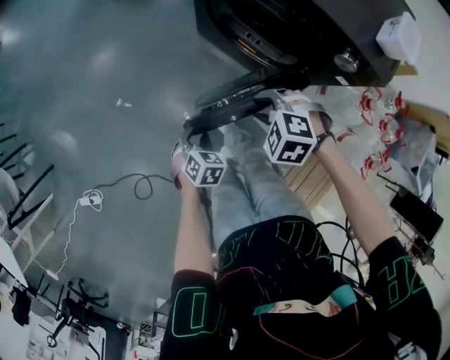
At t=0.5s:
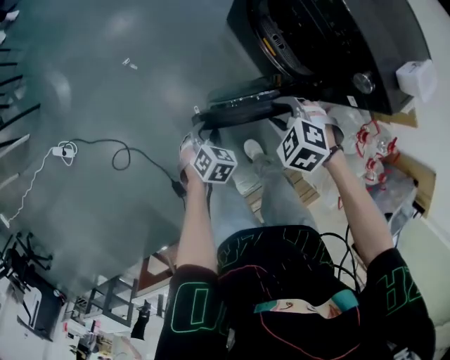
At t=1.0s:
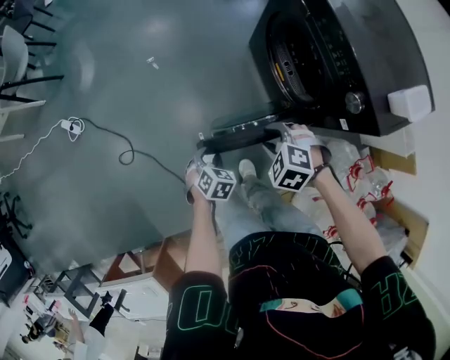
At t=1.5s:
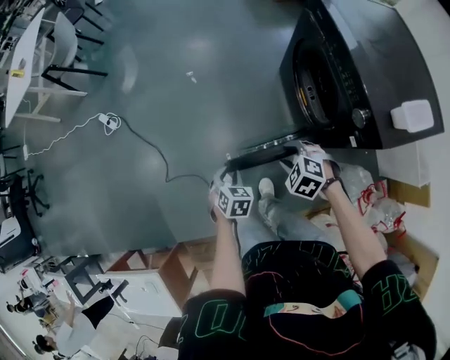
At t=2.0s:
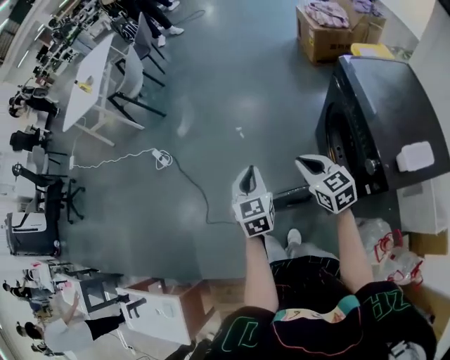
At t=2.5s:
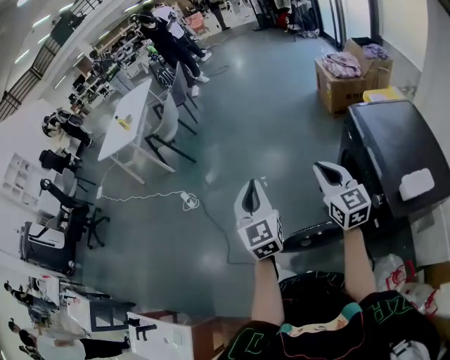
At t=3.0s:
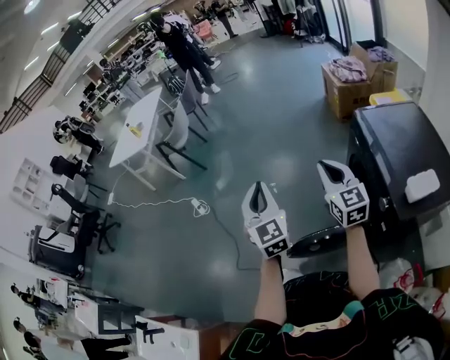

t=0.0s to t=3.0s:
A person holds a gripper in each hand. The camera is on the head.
t=0.0s to t=1.5s: The left gripper shifts by approximately 20 cm, and twists roughly 40 degrees counterclockwise, seen from behind; the right gripper changes place by some 15 cm, and swivels some 30 degrees.
t=1.5s to t=3.0s: The left gripper goes roughly 50 cm upward, points its fingers about 60 degrees further upward, and closes up. The right gripper heads upward and forward, covering approximately 40 cm, angles its fingers upward, by approximately 60 degrees, and closes.

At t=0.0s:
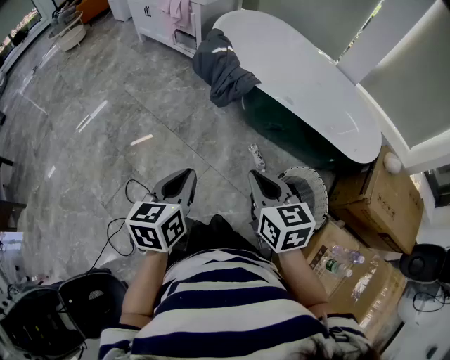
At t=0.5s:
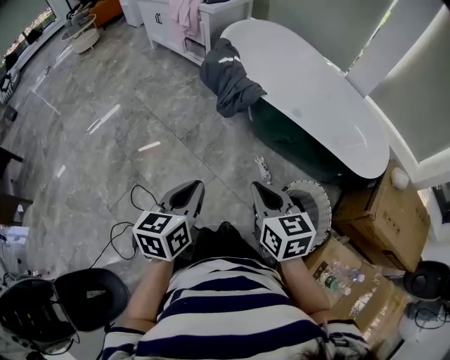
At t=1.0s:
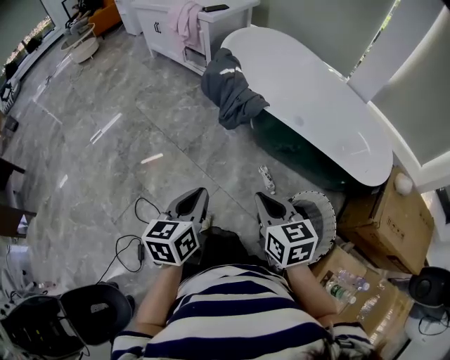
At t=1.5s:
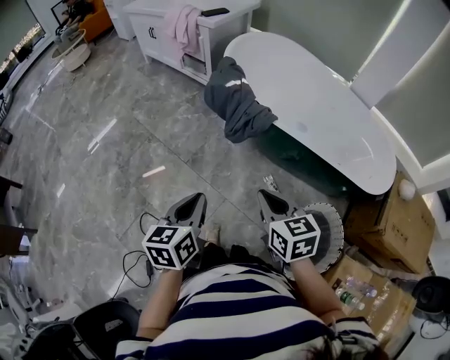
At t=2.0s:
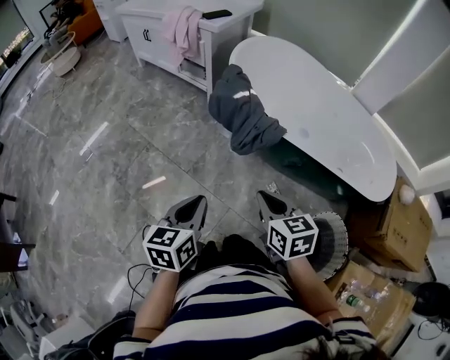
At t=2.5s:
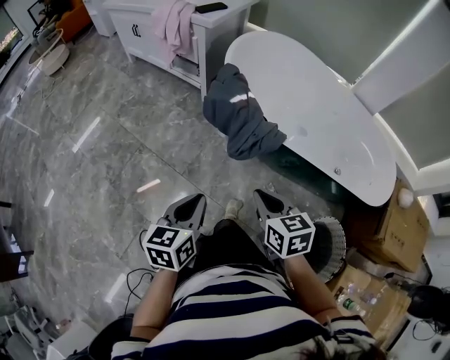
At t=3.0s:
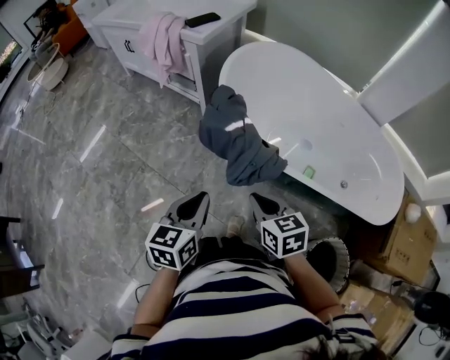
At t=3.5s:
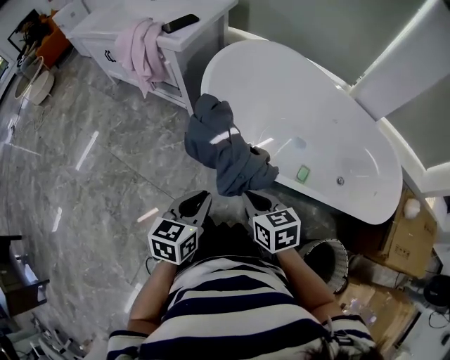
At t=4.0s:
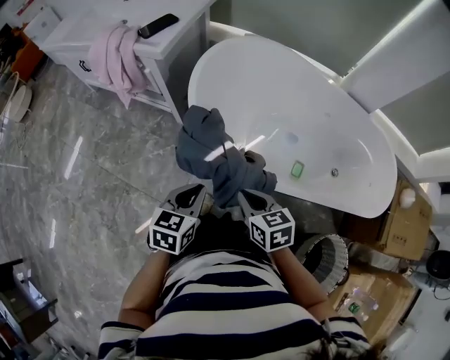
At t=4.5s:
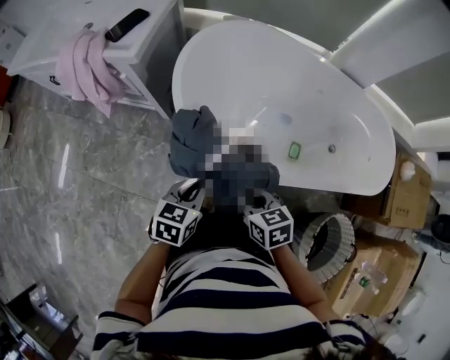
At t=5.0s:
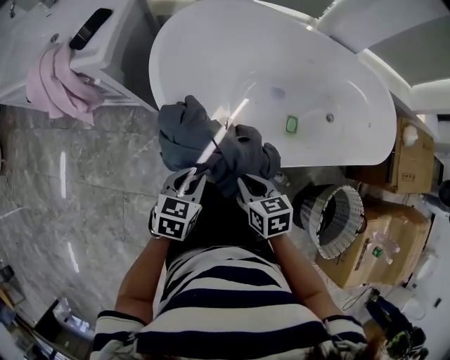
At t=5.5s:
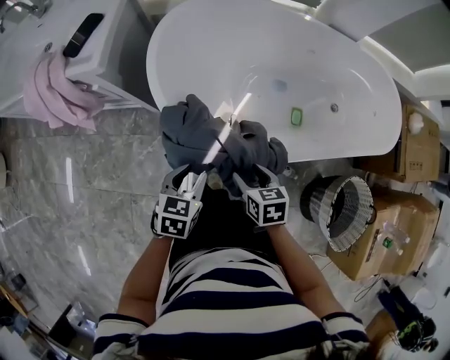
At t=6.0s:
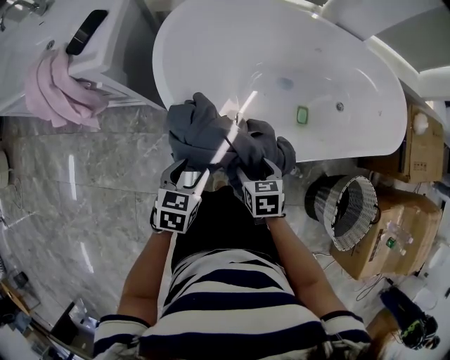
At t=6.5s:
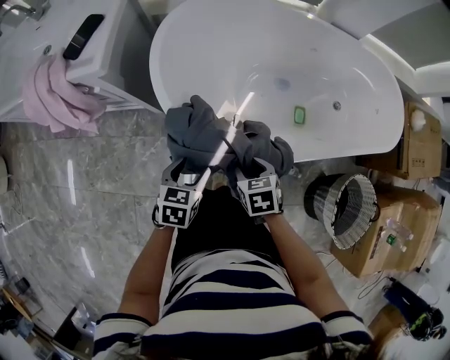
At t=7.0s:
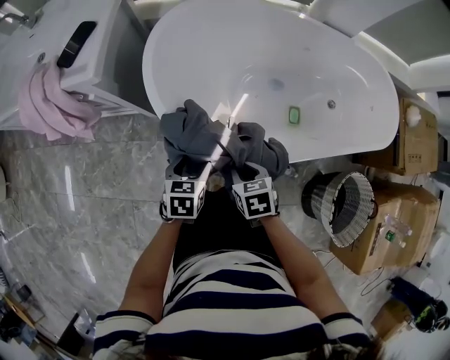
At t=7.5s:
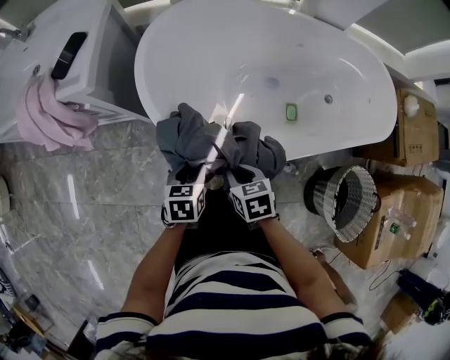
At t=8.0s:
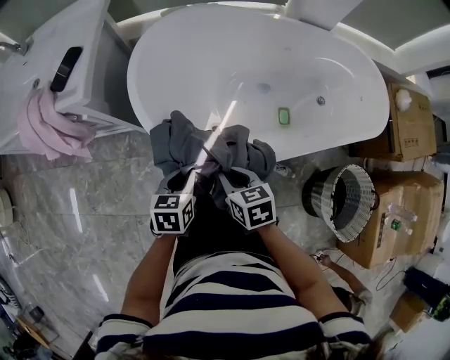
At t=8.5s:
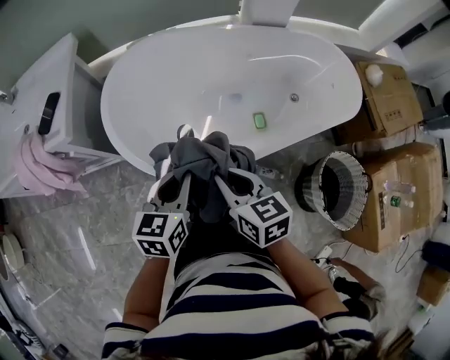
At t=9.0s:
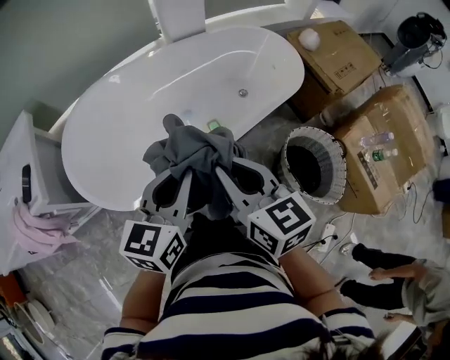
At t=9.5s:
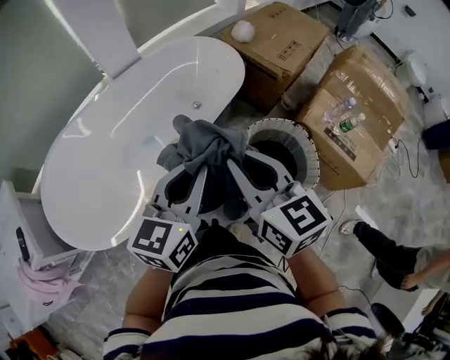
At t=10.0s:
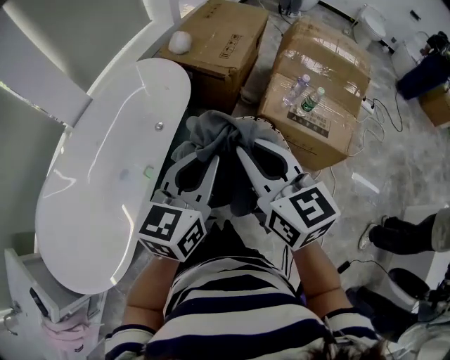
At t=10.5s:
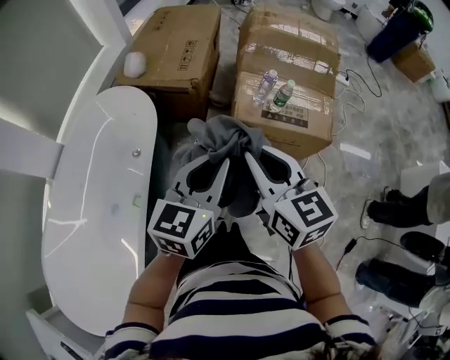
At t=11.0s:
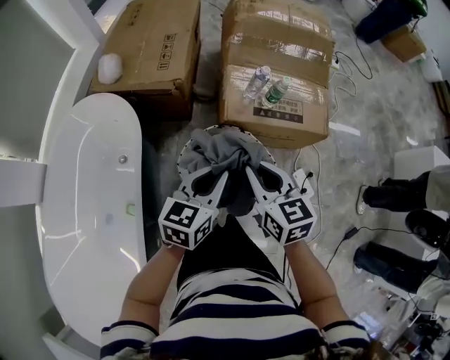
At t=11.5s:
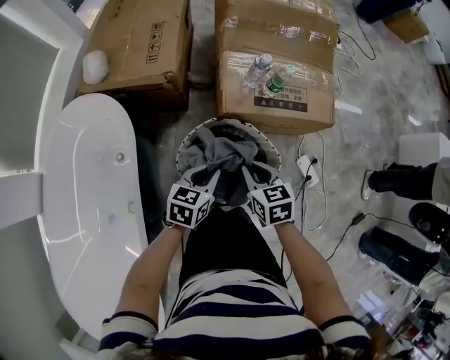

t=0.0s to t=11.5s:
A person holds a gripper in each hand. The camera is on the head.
t=0.0s to t=2.0s: Both grippers travel together forward and to the left, roughly 20 cm.
t=2.0s to t=4.0s: Both grippers travel together forward, some 30 cm. The left gripper swivels roughly 30 degrees.
t=4.0s to t=6.0s: Both grippers move downward, about 10 cm. The left gripper turns by about 20 degrees, and opens its fingers. Meanwhile the right gripper rotates some 30 degrees, and opens up.
t=6.0s to t=7.5s: The right gripper closes its fingers.
t=7.5s to t=9.5s: Both grippers are carried roughly 40 cm. The right gripper points its fingers roughly 40 degrees further upward. The left gripper tilts its fingers some 40 degrees upward.
t=9.5s to t=11.5s: The left gripper shifts by about 40 cm, and changes its angle by approximately 60 degrees, while the right gripper ends up approximately 40 cm from where it was, and angles its fingers downward, by roughly 30 degrees.

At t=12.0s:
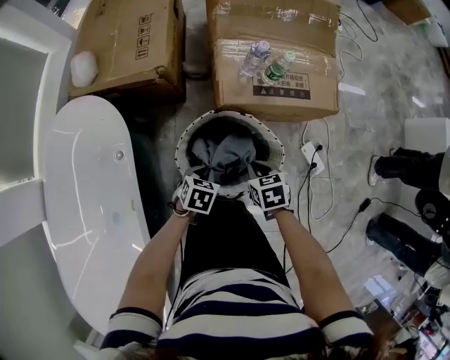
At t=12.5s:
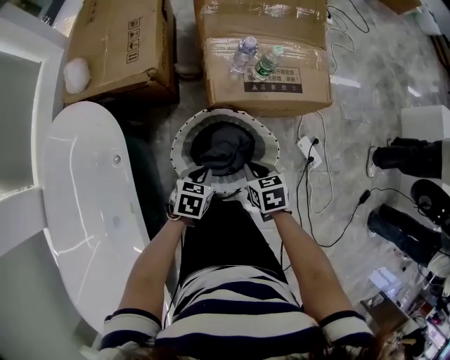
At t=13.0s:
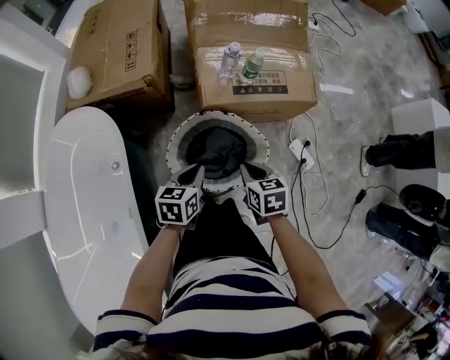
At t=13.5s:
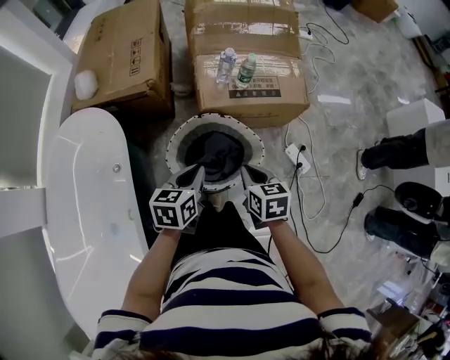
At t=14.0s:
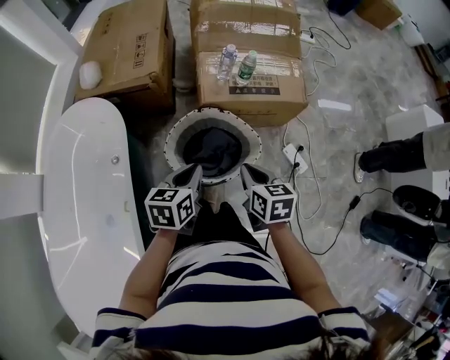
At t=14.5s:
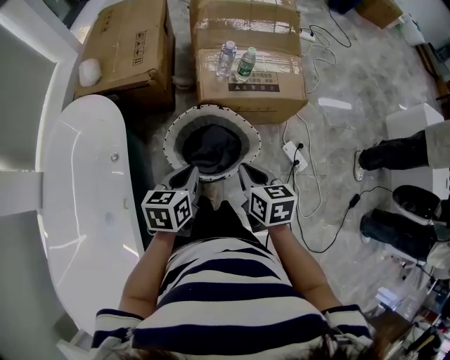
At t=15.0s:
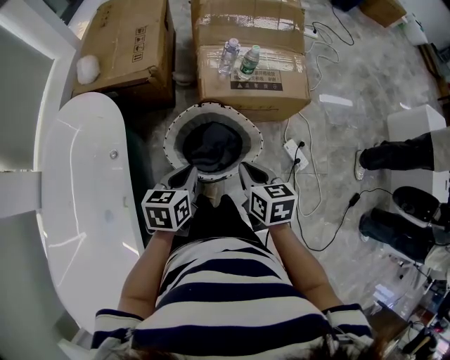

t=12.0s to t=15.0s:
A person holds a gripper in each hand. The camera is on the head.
t=12.0s to t=13.5s: The right gripper is displaced upward and backward by roughly 15 cm, and turns by roughly 20 degrees. The left gripper goes roughly 15 cm upward, and changes its angle by roughly 30 degrees.
t=13.5s to t=15.0s: There are only small adjustments of the grippers.

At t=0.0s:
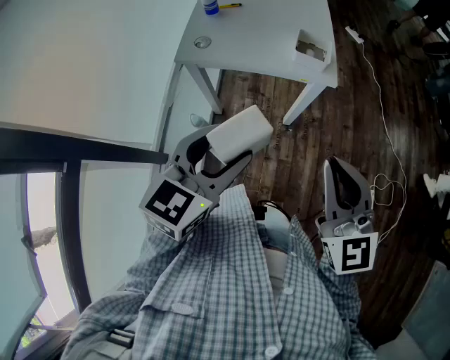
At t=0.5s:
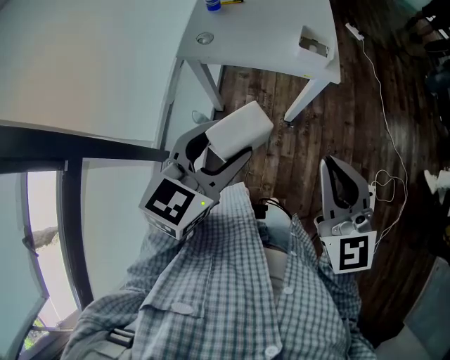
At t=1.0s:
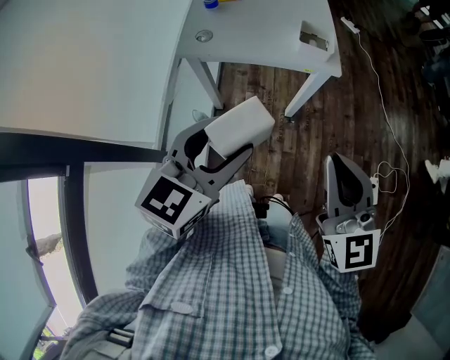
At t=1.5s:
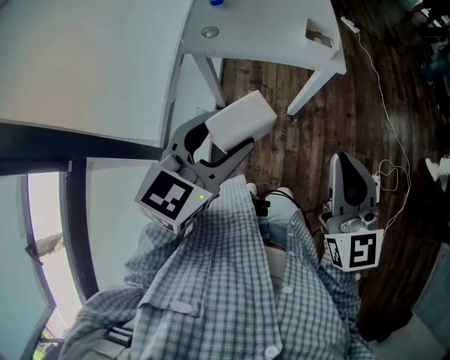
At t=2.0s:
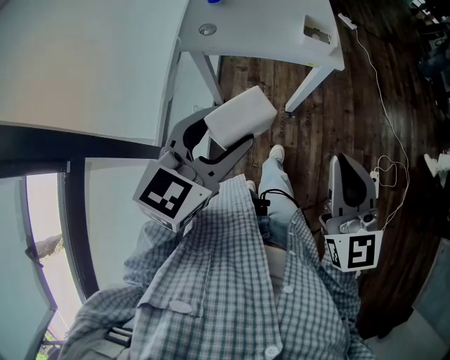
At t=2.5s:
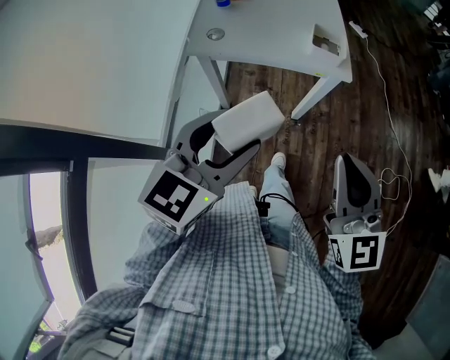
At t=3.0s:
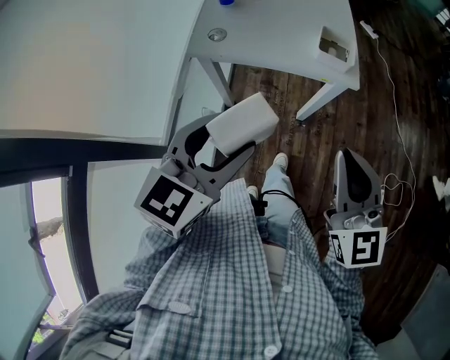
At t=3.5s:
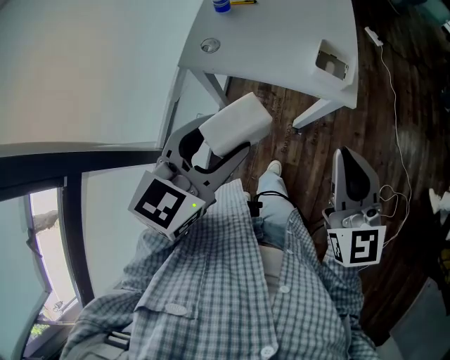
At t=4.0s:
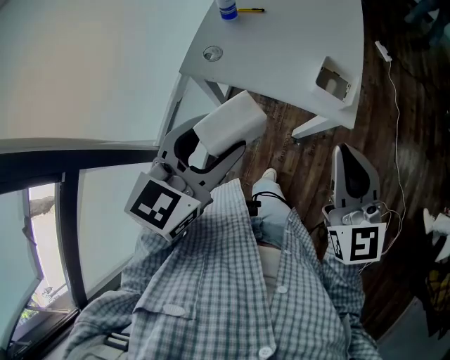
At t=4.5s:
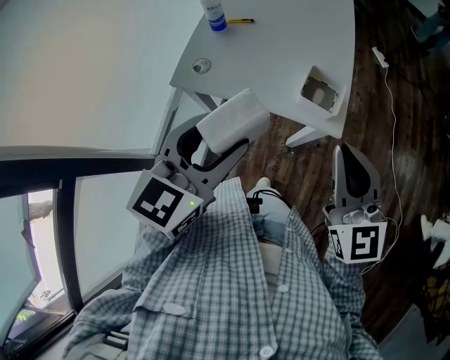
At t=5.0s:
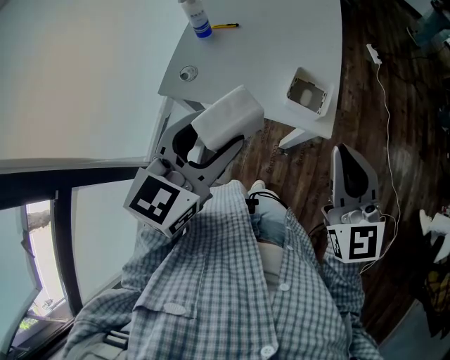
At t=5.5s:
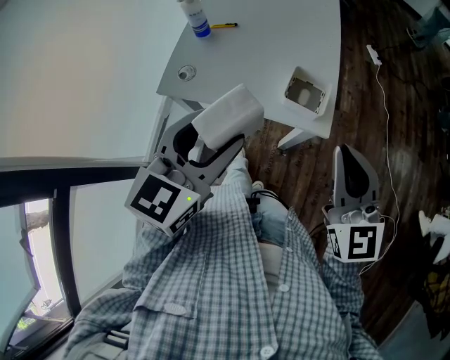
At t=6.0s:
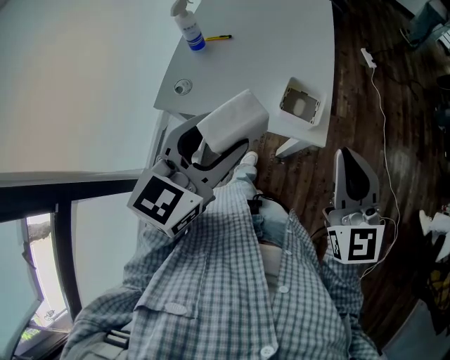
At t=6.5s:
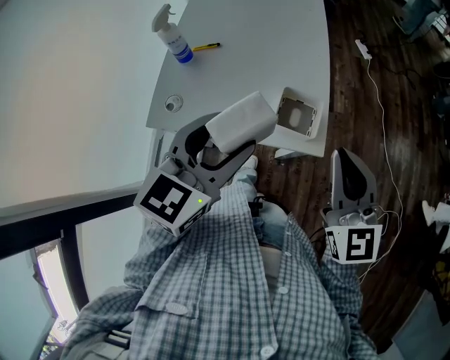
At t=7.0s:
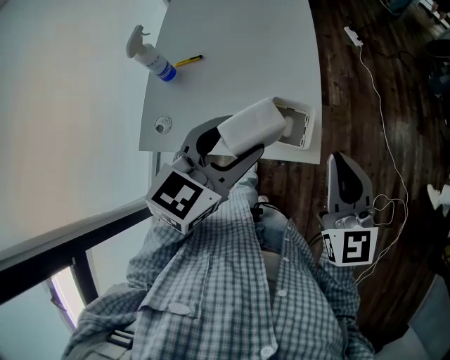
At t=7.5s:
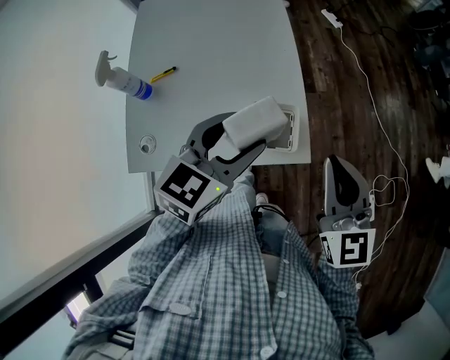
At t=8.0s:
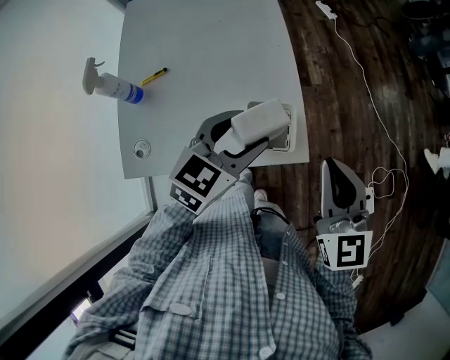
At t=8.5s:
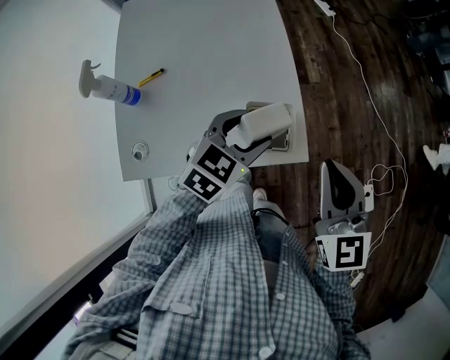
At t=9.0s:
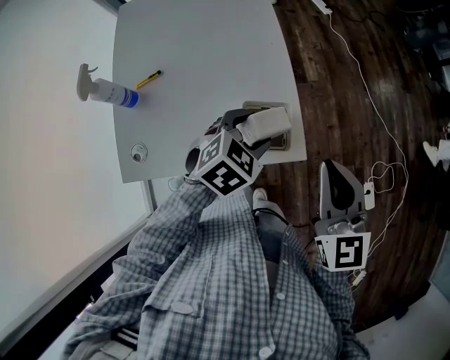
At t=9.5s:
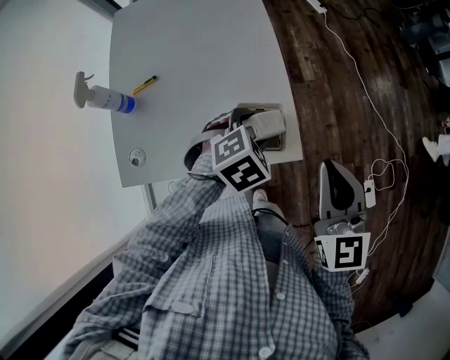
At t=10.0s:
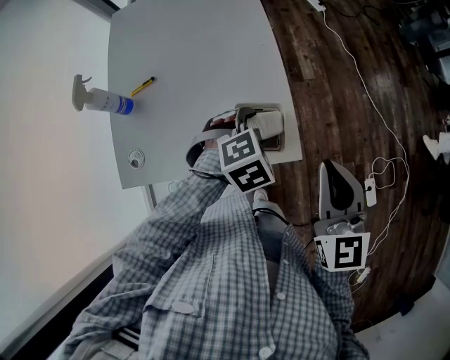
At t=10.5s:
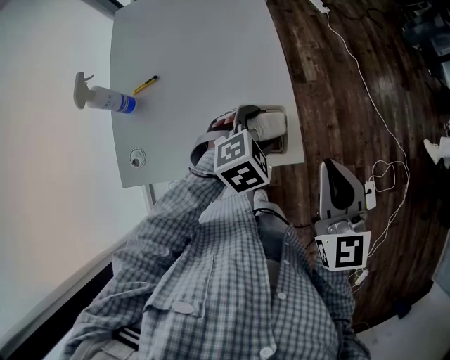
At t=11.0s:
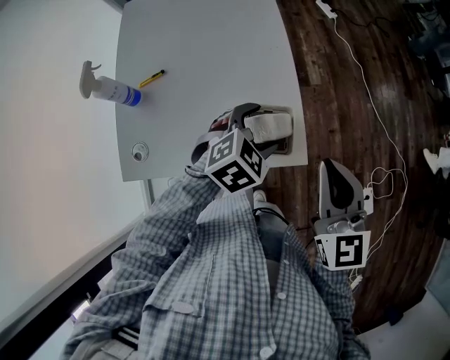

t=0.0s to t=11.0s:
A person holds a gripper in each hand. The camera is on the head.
t=0.0s to t=2.0s: The left gripper heads to the left, covering approximately 5 cm, while the right gripper heads backward, covering approximately 5 cm.
t=2.0s to t=3.5s: Both grippers travel together forward, approximately 15 cm.
t=3.5s to t=5.5s: The grippers both shift forward and to the right by roughly 10 cm.
t=5.5s to t=7.5s: The left gripper goes roughly 20 cm forward and to the right, and changes its angle by about 30 degrees; the right gripper moves forward, about 10 cm, and changes its angle by some 20 degrees.
t=7.5s to t=9.0s: The left gripper moves downward, about 10 cm, and changes its angle by approximately 30 degrees.
